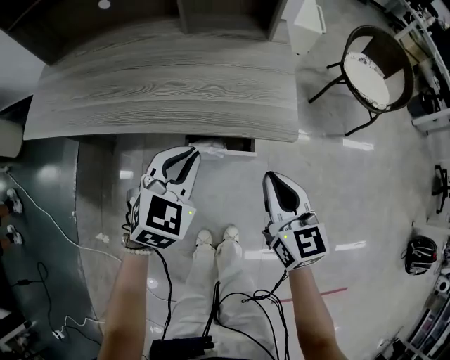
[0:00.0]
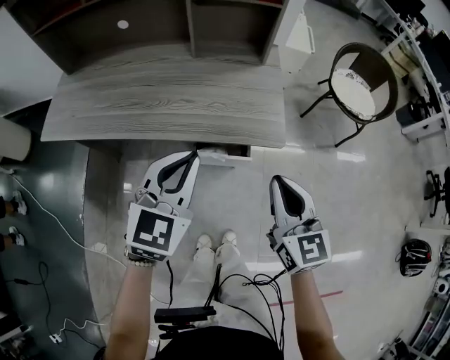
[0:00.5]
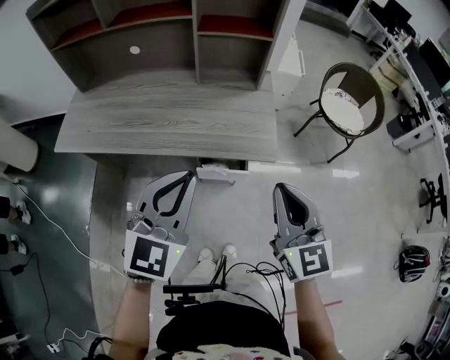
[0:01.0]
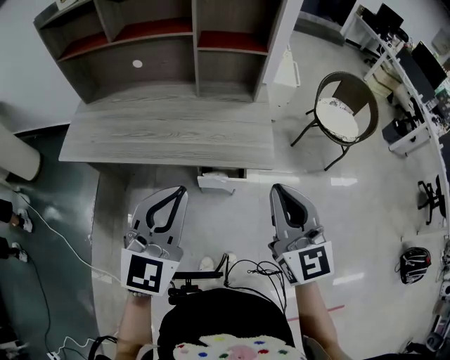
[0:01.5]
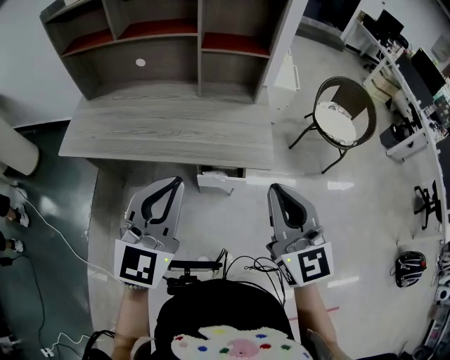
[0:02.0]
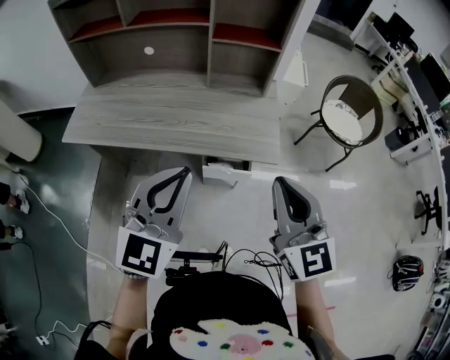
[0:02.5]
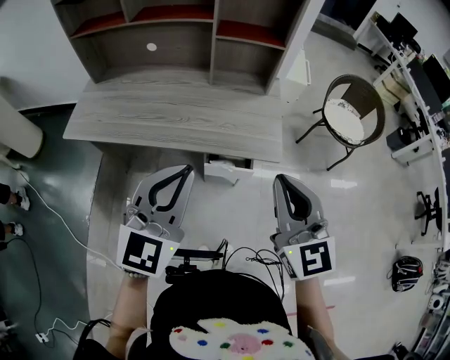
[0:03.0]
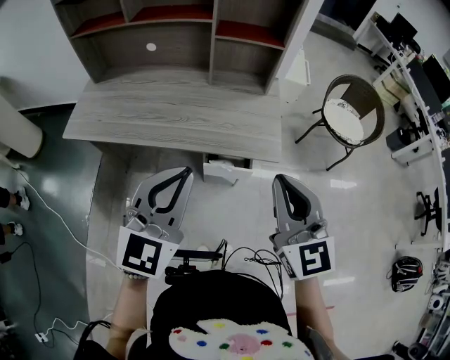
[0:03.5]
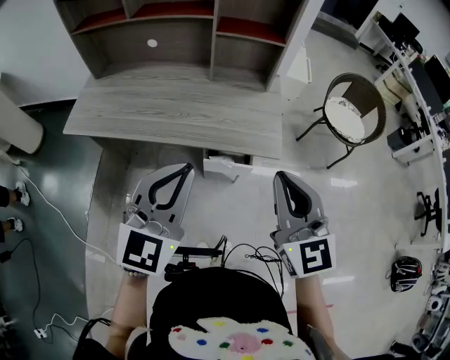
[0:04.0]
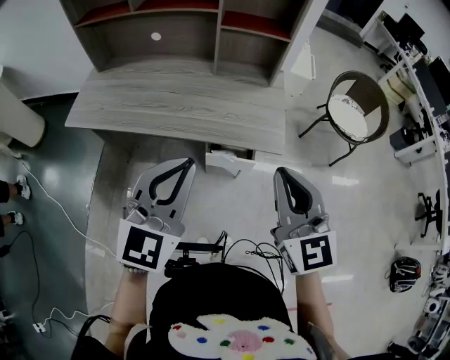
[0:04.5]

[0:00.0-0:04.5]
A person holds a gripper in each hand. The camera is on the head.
0:00.0 to 0:02.0: The left gripper shifts approximately 30 cm upward and backward, and angles its fingers upward, by some 30 degrees; the right gripper heads upward, covering roughly 30 cm, and rotates some 20 degrees.
0:02.0 to 0:04.5: The grippers stay close to where they were, moving slightly.

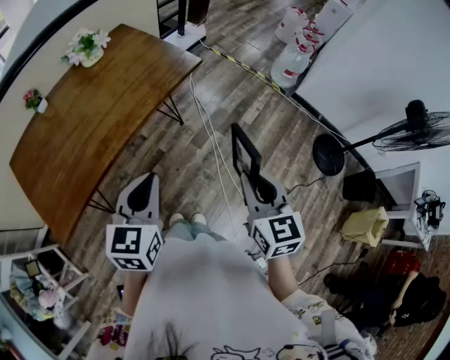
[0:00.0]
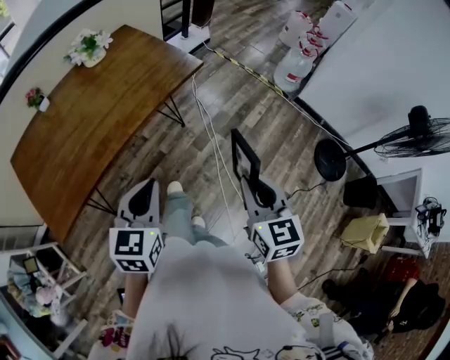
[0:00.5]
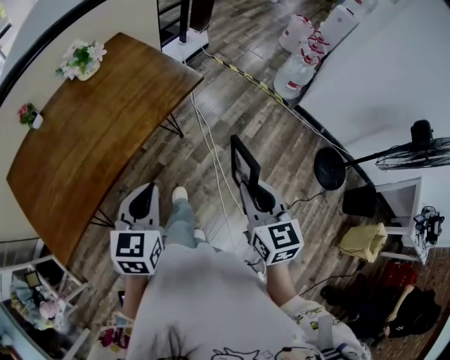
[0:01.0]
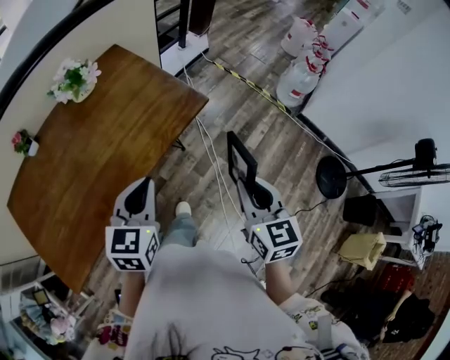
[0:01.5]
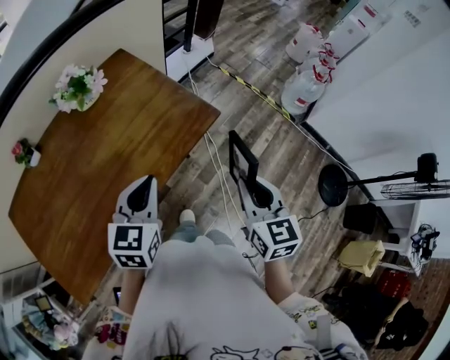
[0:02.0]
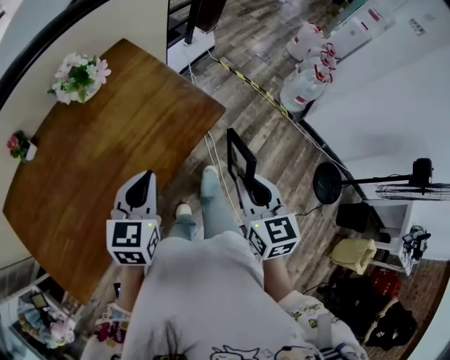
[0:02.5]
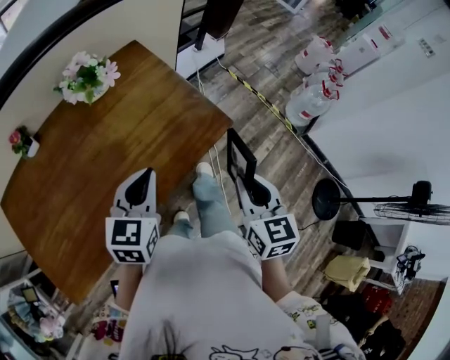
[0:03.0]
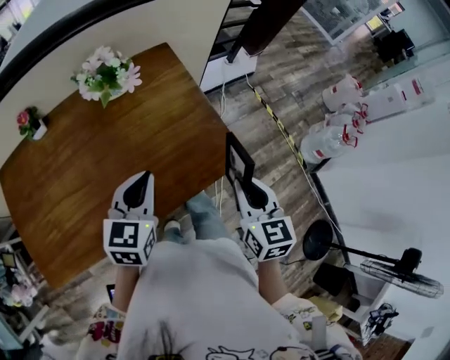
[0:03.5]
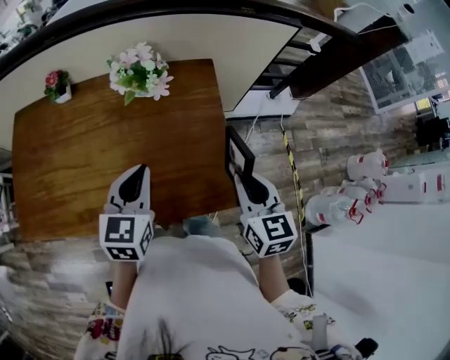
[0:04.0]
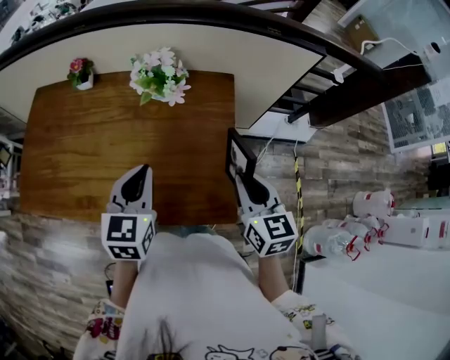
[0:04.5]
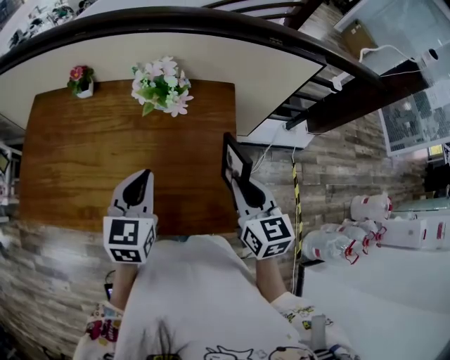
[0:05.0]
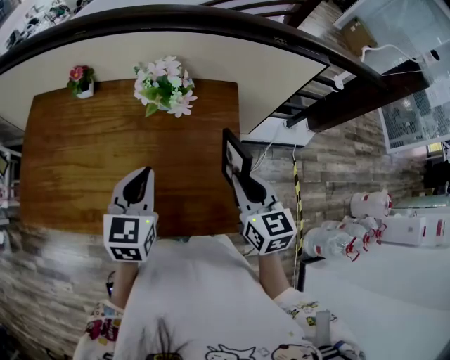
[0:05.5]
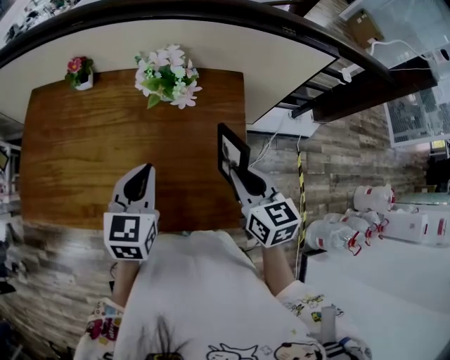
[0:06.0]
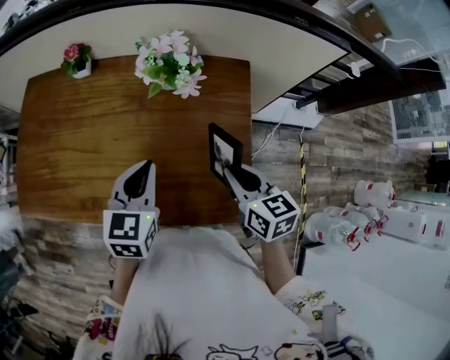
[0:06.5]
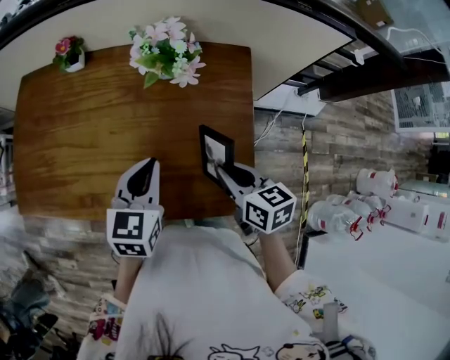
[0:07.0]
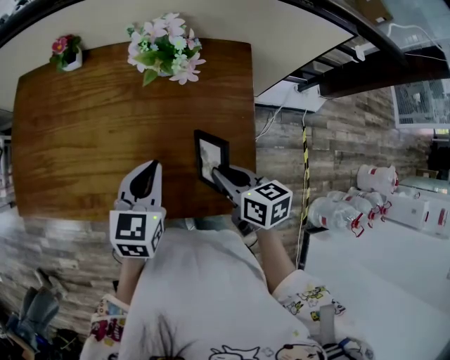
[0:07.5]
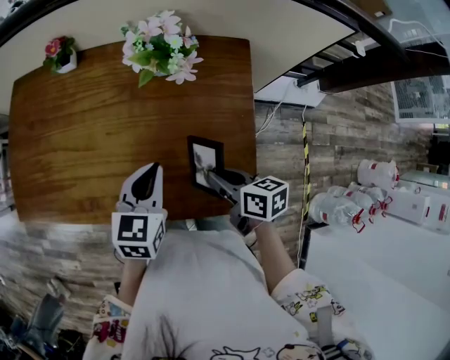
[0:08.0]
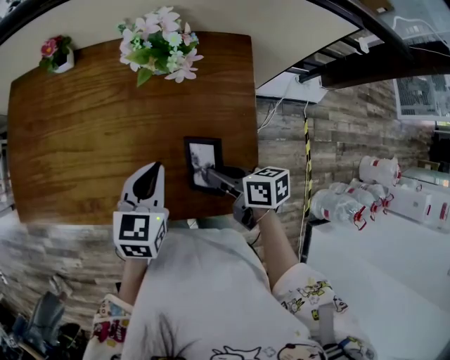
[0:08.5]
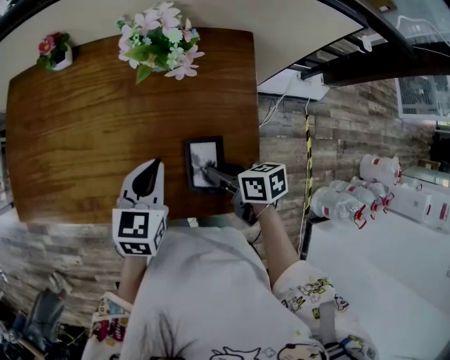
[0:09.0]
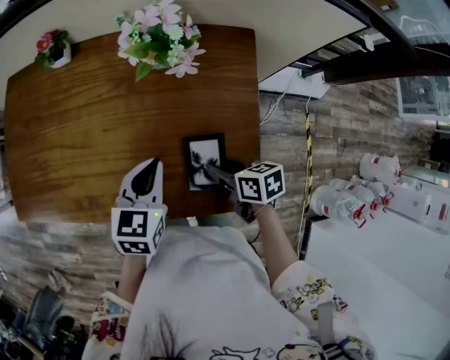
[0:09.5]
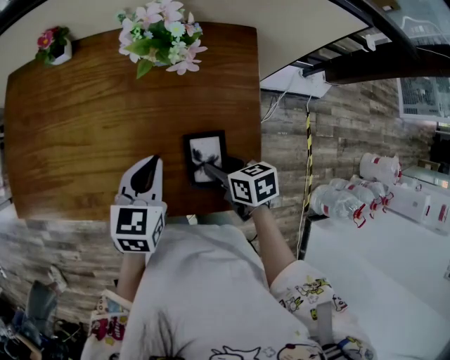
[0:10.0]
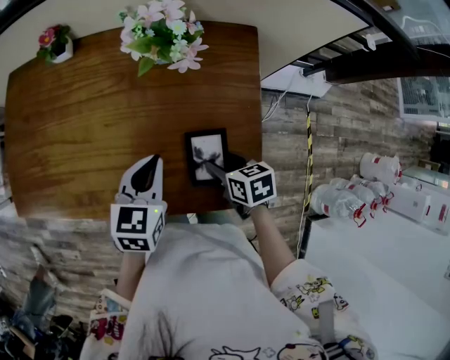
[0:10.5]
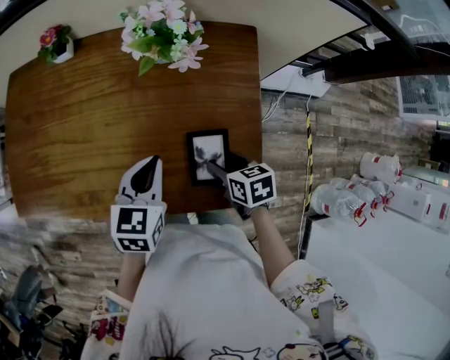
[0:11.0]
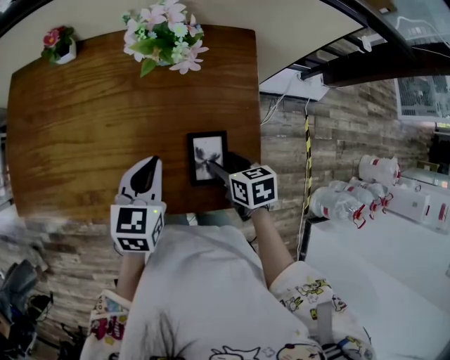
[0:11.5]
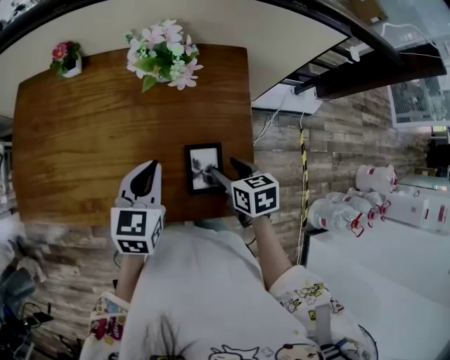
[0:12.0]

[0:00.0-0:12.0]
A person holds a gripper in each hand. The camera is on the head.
0:00.0 to 0:02.0: The grippers both shift forward by approximately 30 cm.
0:02.0 to 0:04.0: The left gripper moves roughly 20 cm, and turns by about 40 degrees. Meanwhile the right gripper ends up roughly 30 cm from where it was, and swivels some 40 degrees.
0:04.0 to 0:06.0: The right gripper moves forward, roughly 10 cm.
0:06.0 to 0:08.0: The right gripper shifts about 15 cm downward and to the left, and changes its angle by roughly 40 degrees. The left gripper travels downward by approximately 5 cm.
0:08.0 to 0:10.0: The right gripper moves downward, some 5 cm, and opens.
0:10.0 to 0:12.0: The right gripper moves roughly 5 cm.

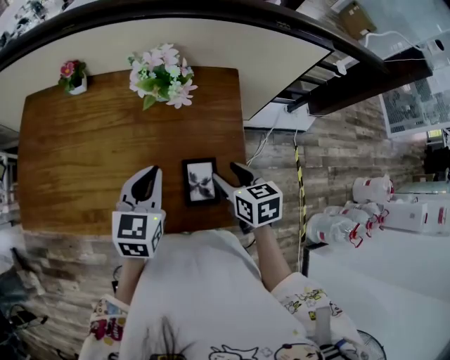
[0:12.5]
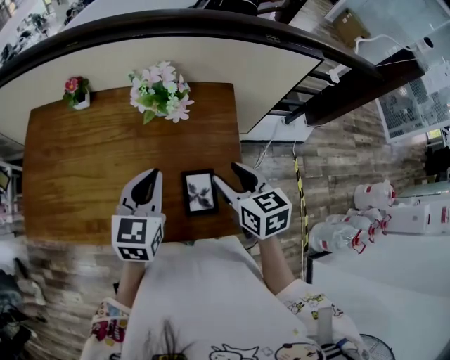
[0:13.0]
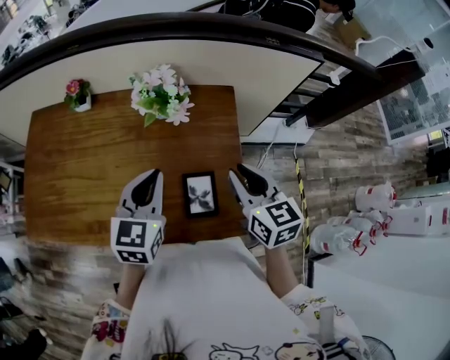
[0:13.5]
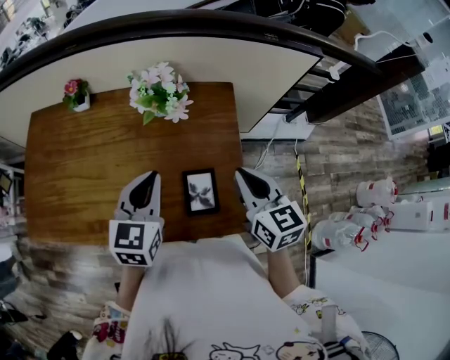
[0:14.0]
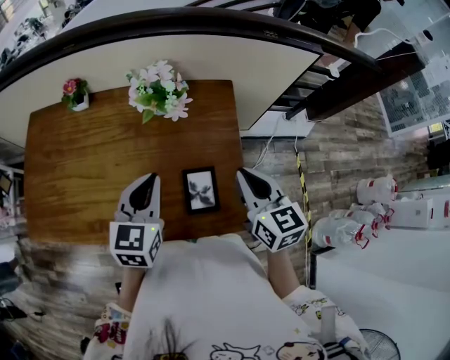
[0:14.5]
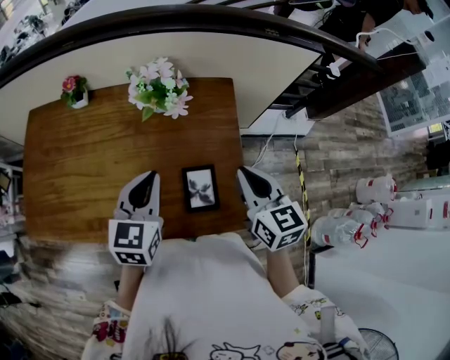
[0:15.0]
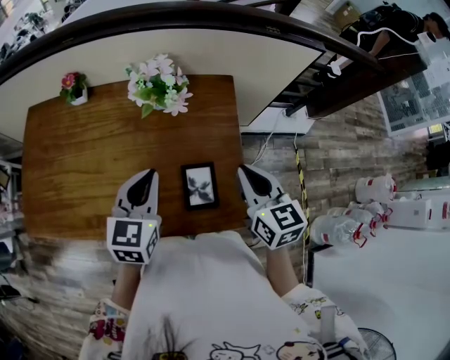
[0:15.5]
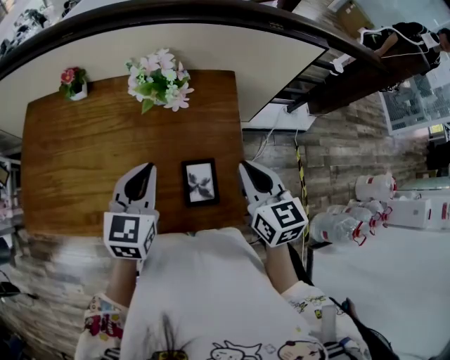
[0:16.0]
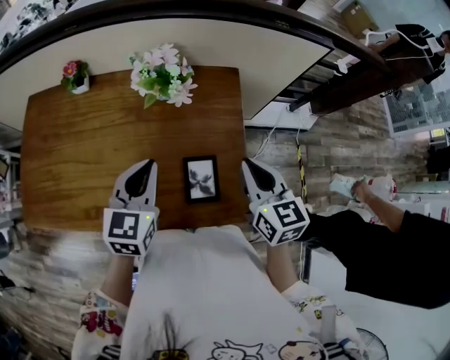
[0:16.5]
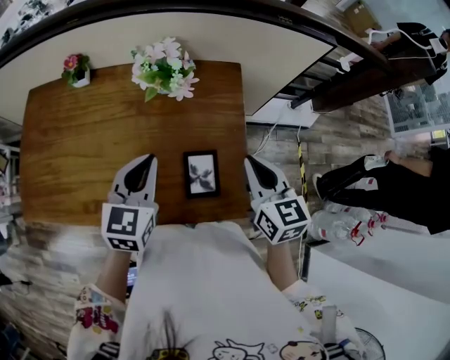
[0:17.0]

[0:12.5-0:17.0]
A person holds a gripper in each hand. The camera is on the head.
0:12.5 to 0:14.5: The right gripper travels upward by about 10 cm, rotates some 20 degrees, and closes its fingers.
0:14.5 to 0:17.0: The grippers move only a little.

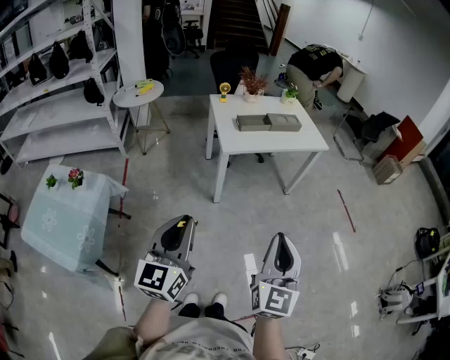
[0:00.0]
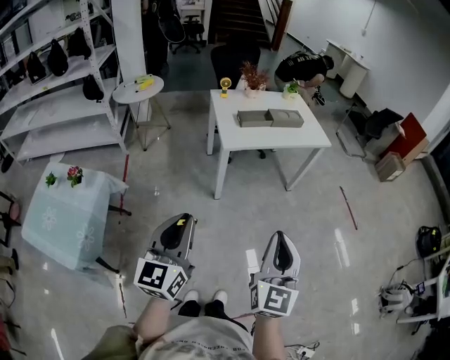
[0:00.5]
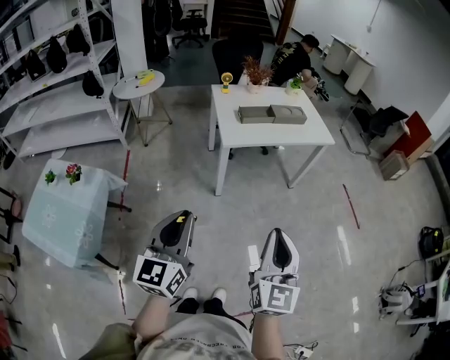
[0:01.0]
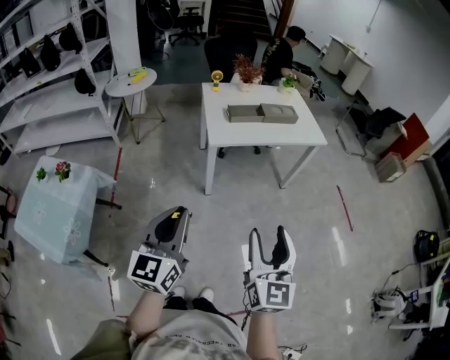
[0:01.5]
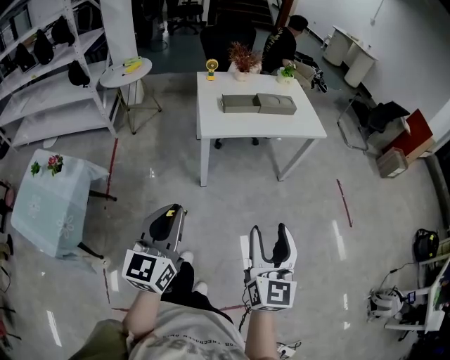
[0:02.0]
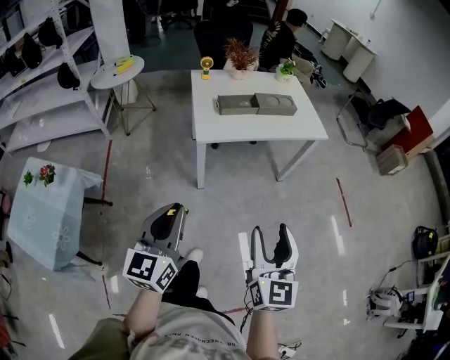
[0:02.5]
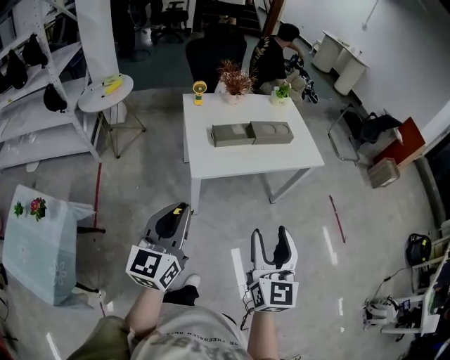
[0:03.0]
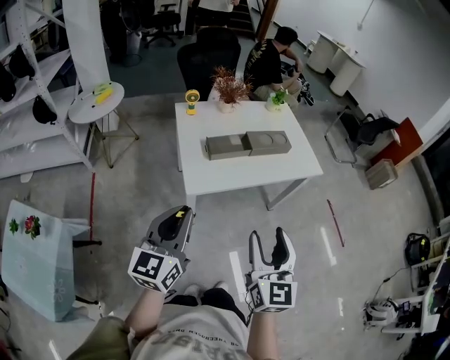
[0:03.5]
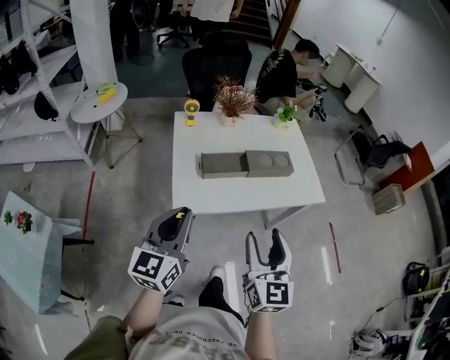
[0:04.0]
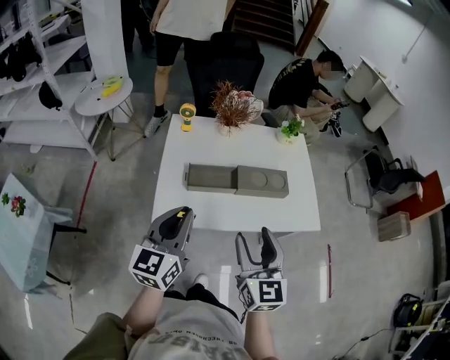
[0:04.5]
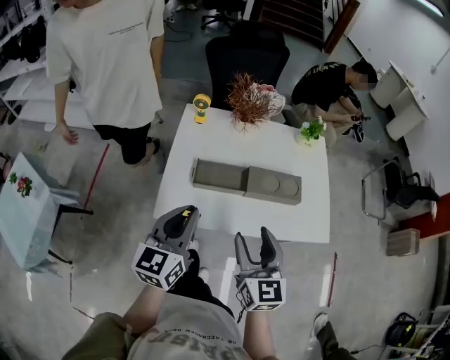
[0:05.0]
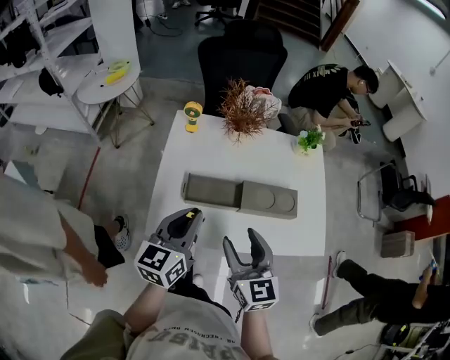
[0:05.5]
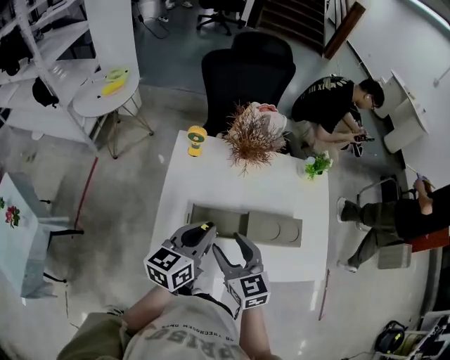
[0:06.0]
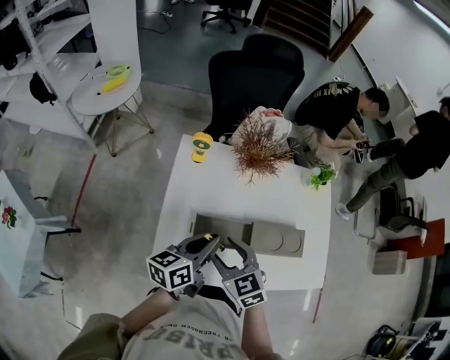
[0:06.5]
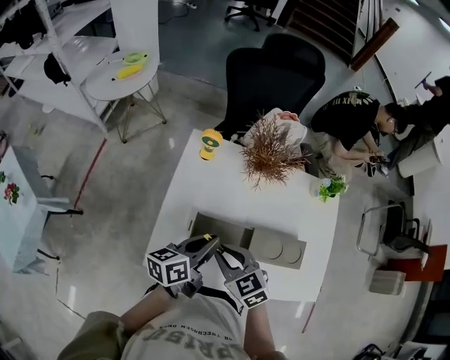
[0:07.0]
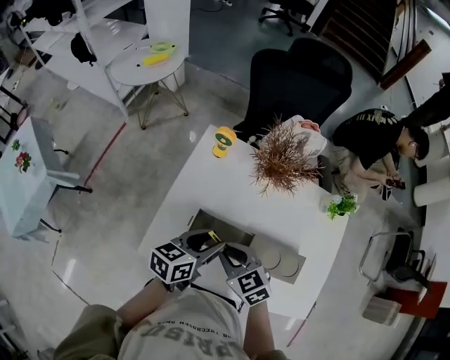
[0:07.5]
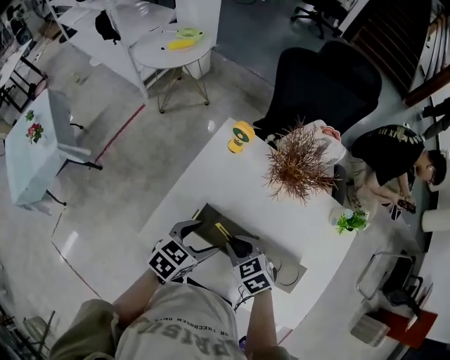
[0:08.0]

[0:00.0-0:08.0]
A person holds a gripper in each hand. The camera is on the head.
0:00.0 to 0:02.0: The right gripper shifts about 15 cm forward, to the right and downward, and opens its fingers. The left gripper goes approximately 15 cm to the right and forward.
0:02.0 to 0:04.0: Both grippers move forward, some 40 cm.
0:04.0 to 0:06.0: The right gripper shifts approximately 30 cm forward and downward, and turns by roughly 40 degrees. The left gripper goes about 30 cm forward, and rotates approximately 20 degrees.
0:06.0 to 0:08.0: The right gripper heads downward and forward, covering approximately 15 cm, turns by approximately 50 degrees, and closes. The left gripper shifts some 15 cm downward, swivels approximately 30 degrees, and opens.
